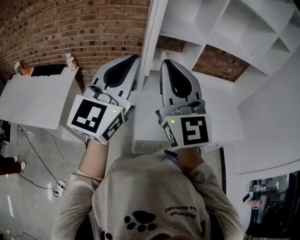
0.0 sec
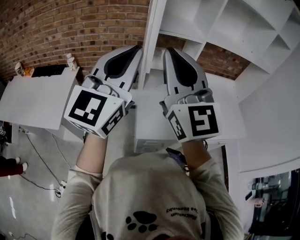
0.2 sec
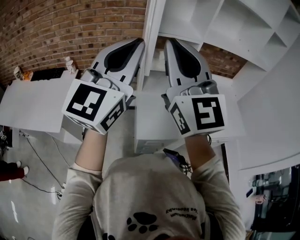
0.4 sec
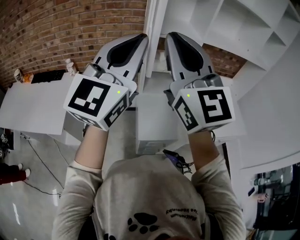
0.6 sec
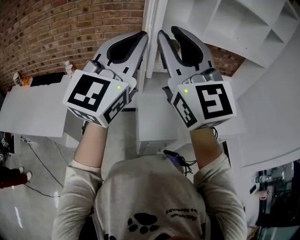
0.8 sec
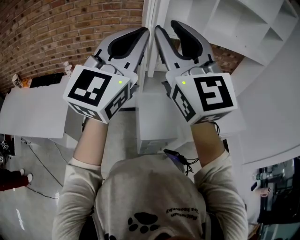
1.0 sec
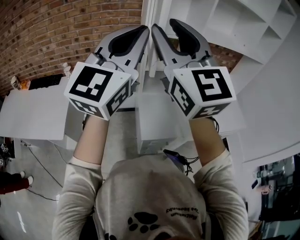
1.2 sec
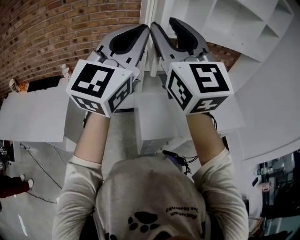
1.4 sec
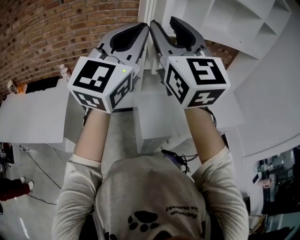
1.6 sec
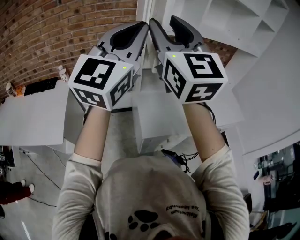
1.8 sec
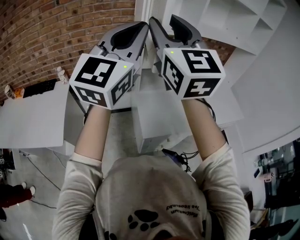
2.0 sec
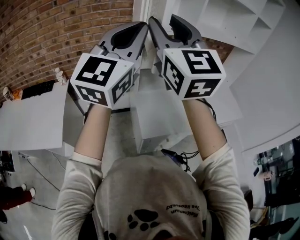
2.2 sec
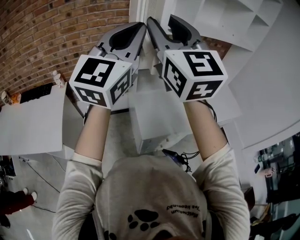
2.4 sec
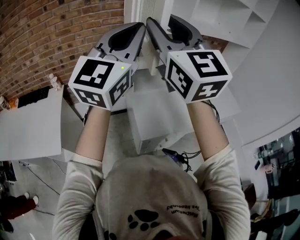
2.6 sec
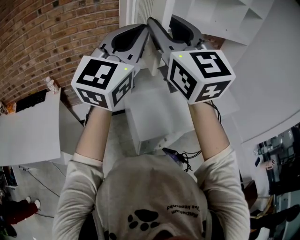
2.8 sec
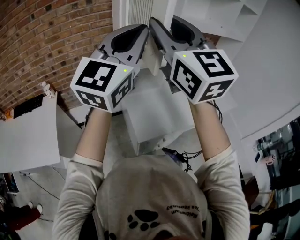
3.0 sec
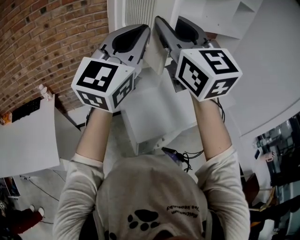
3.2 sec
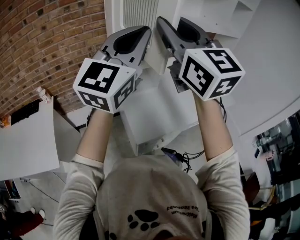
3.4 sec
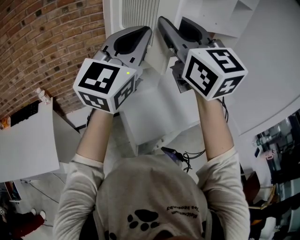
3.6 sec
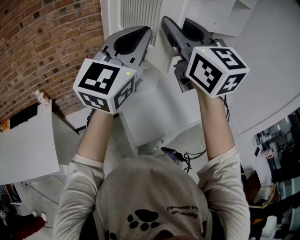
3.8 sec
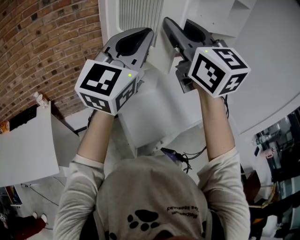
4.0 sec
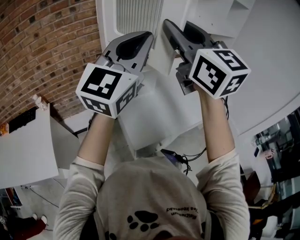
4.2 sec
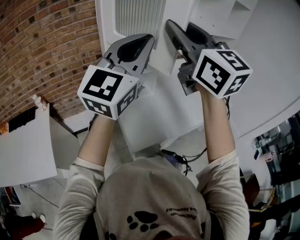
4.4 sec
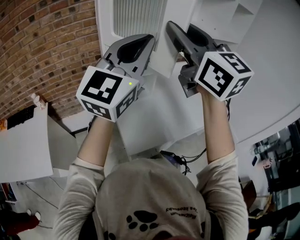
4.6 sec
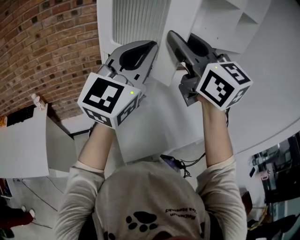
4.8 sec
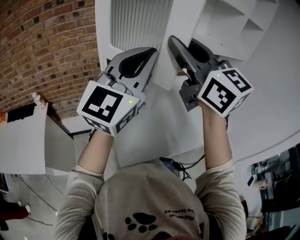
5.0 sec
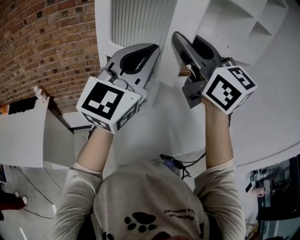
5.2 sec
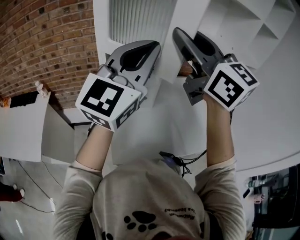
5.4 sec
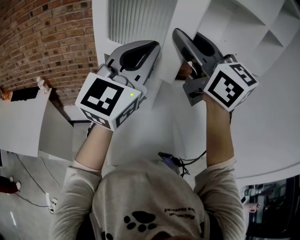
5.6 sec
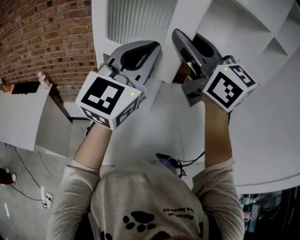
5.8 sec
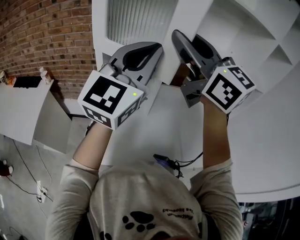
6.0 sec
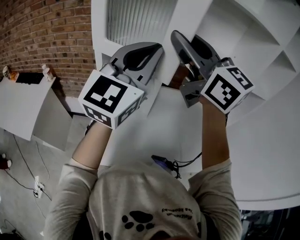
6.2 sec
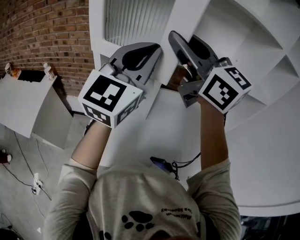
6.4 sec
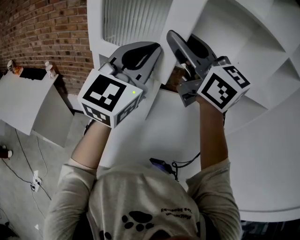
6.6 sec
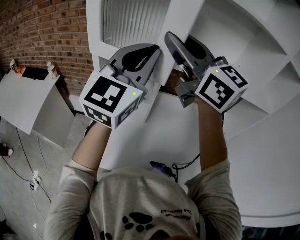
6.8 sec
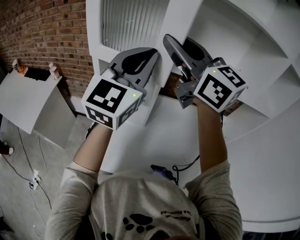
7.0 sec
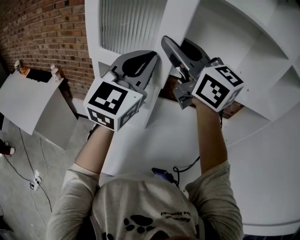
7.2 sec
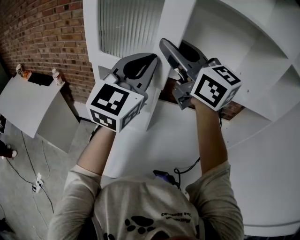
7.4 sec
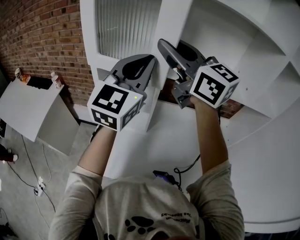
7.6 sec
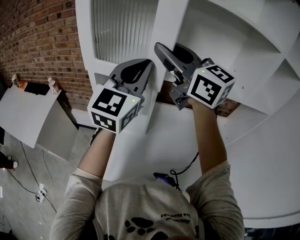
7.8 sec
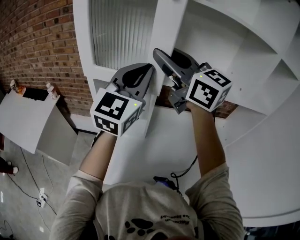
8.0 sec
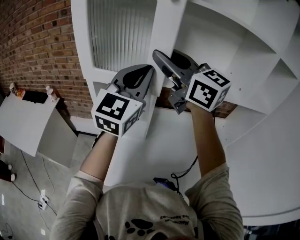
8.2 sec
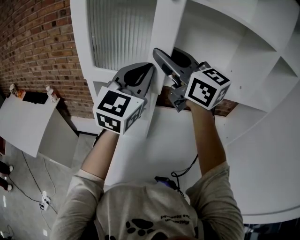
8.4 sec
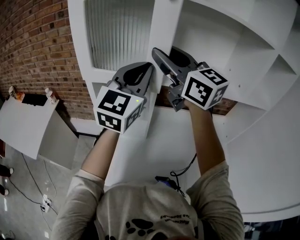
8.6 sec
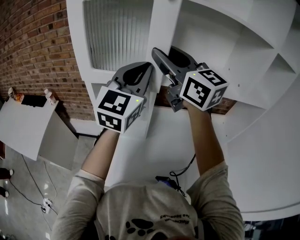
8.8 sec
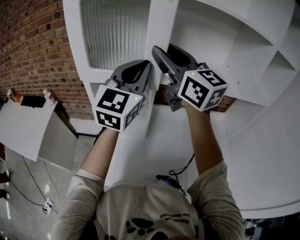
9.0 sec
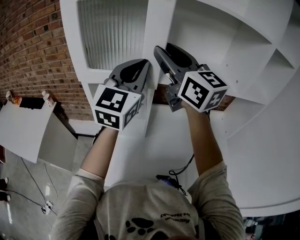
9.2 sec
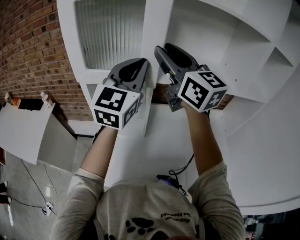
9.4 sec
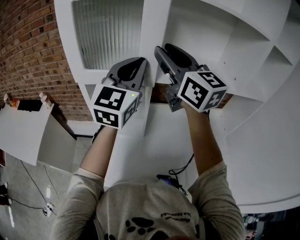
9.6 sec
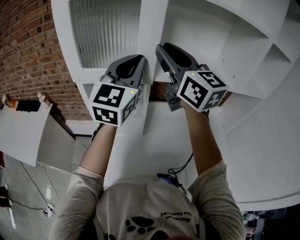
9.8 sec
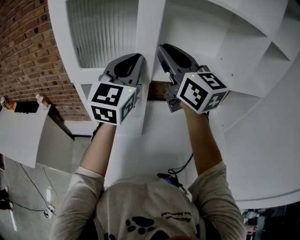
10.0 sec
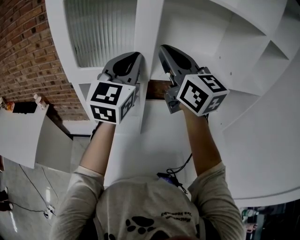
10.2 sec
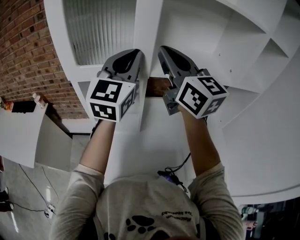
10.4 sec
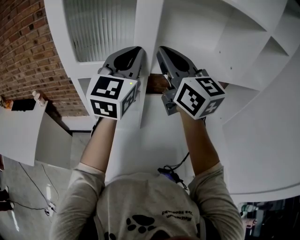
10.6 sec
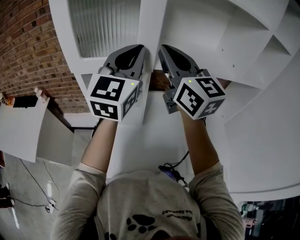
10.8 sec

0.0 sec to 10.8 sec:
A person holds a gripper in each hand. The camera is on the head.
0.0 sec to 1.6 sec: Both grippers travel together upward, approximately 10 cm. The right gripper opens up.
1.6 sec to 3.0 sec: The left gripper moves about 5 cm.
3.0 sec to 4.6 sec: Both grippers travel together to the right and forward, about 10 cm.
4.6 sec to 6.2 sec: The left gripper shifts by some 15 cm, and rotates approximately 20 degrees; the right gripper ends up about 15 cm from where it was, and swivels about 30 degrees.
6.2 sec to 7.8 sec: The grippers both shift forward by some 5 cm.
7.8 sec to 9.2 sec: The grippers stay close to where they were, moving slightly.
9.2 sec to 10.8 sec: The right gripper closes its fingers.

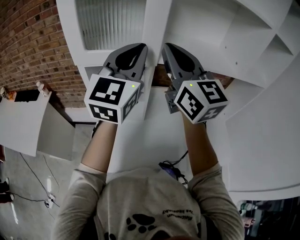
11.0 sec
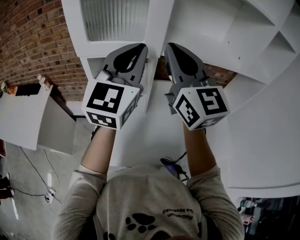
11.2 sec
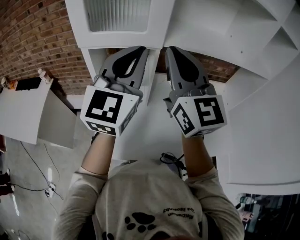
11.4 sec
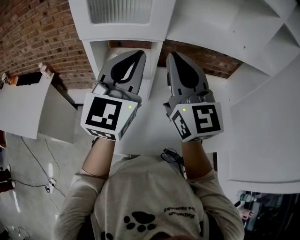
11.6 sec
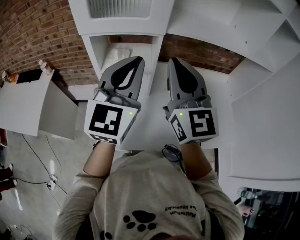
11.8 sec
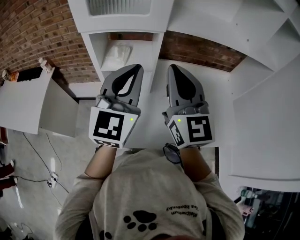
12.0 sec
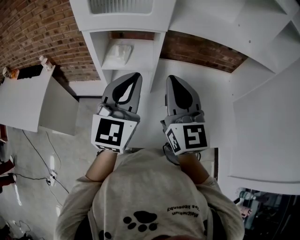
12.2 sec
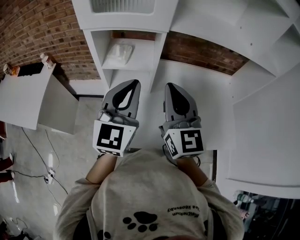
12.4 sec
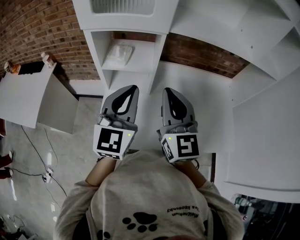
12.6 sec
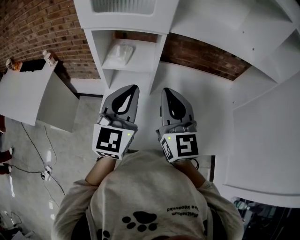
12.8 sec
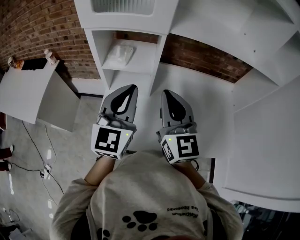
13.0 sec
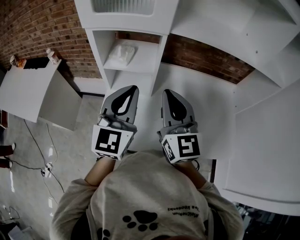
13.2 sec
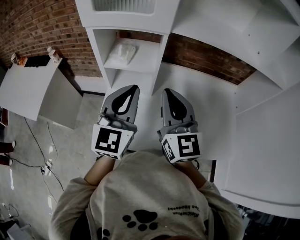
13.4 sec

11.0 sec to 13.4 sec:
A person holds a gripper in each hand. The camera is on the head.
11.0 sec to 12.2 sec: Both grippers move downward and backward, roughly 20 cm.
12.2 sec to 13.4 sec: There are only small adjustments of the grippers.

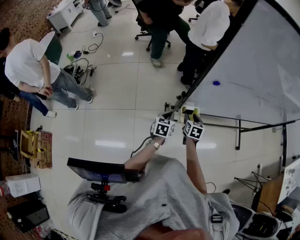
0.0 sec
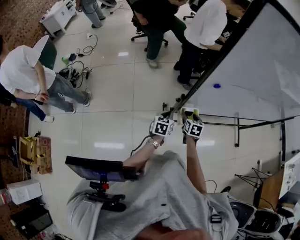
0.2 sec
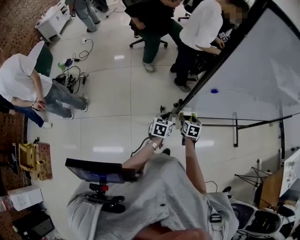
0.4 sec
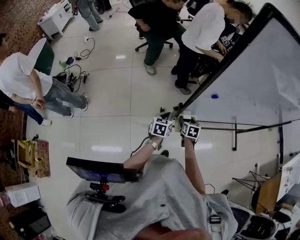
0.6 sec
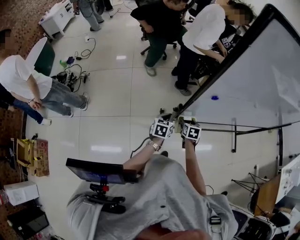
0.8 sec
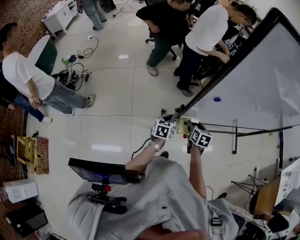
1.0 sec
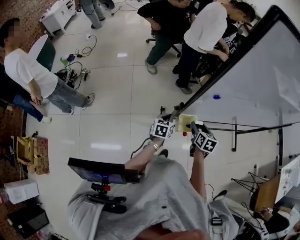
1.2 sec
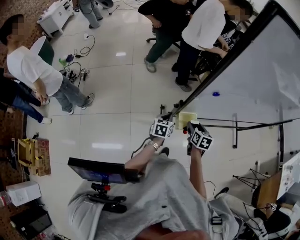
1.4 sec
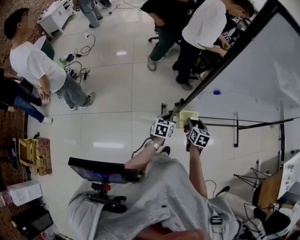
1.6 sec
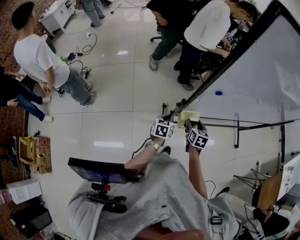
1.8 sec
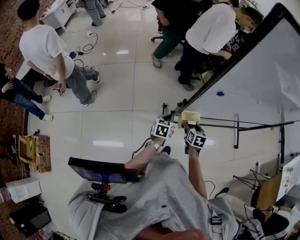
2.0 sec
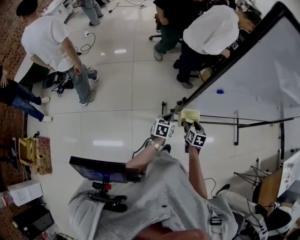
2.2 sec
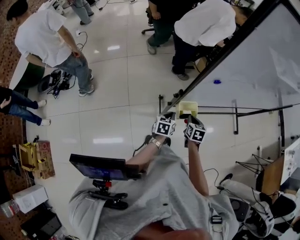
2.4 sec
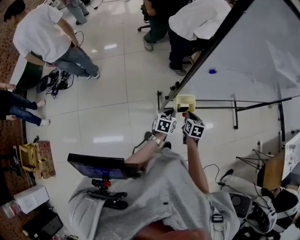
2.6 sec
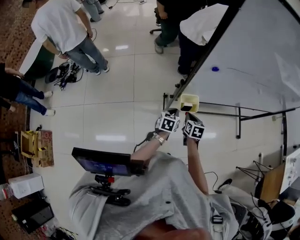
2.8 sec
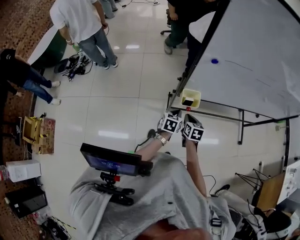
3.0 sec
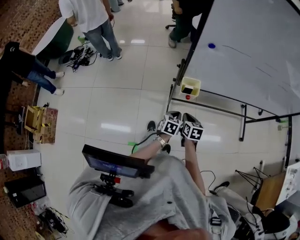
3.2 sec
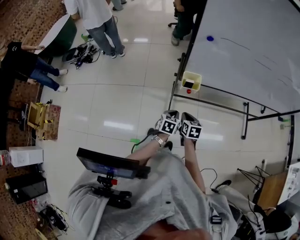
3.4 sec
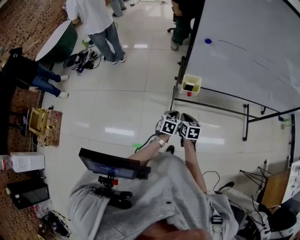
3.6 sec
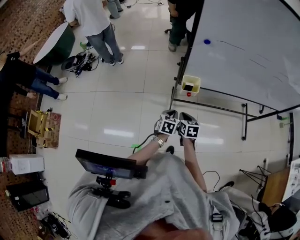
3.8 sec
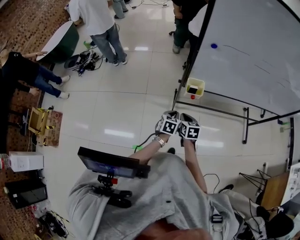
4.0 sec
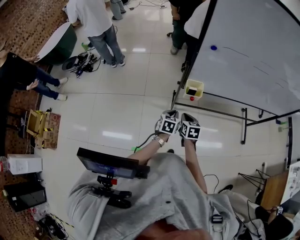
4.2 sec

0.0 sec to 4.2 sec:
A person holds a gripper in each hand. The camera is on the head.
0.0 sec to 1.4 sec: The left gripper changes place by some 5 cm.
1.4 sec to 2.8 sec: The left gripper heads backward and to the right, covering approximately 10 cm, while the right gripper moves backward, about 5 cm, and closes.
2.8 sec to 4.2 sec: Both grippers travel together backward, some 15 cm.

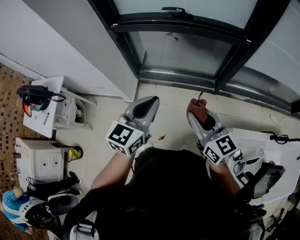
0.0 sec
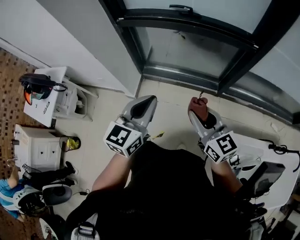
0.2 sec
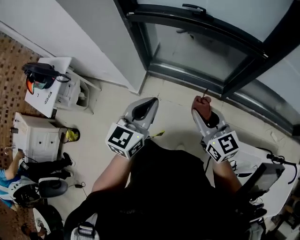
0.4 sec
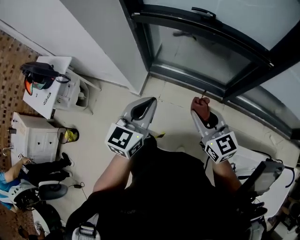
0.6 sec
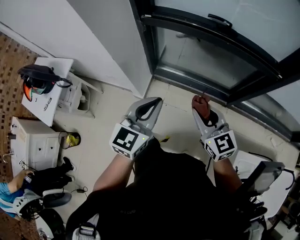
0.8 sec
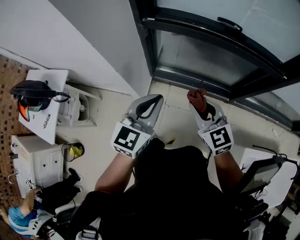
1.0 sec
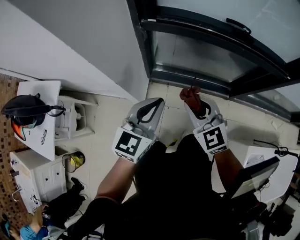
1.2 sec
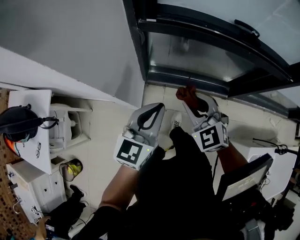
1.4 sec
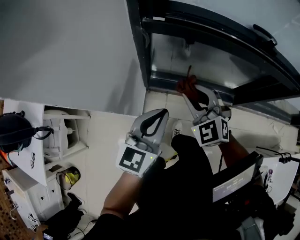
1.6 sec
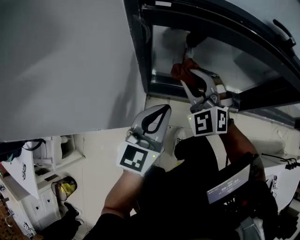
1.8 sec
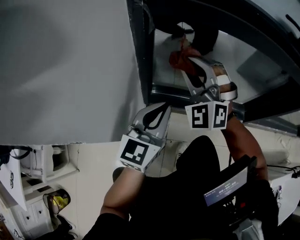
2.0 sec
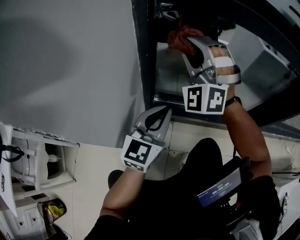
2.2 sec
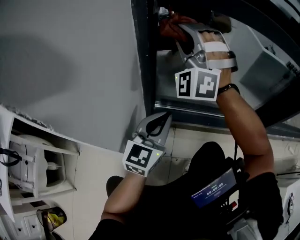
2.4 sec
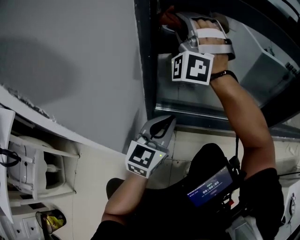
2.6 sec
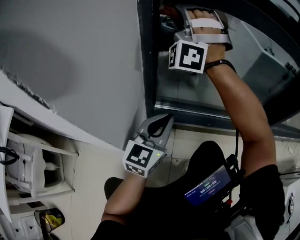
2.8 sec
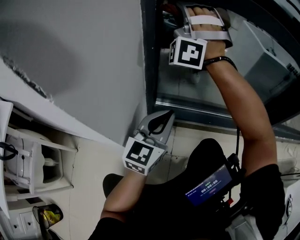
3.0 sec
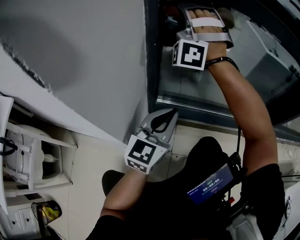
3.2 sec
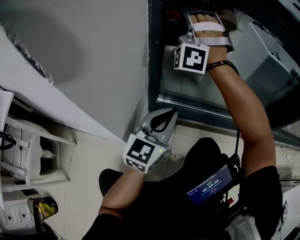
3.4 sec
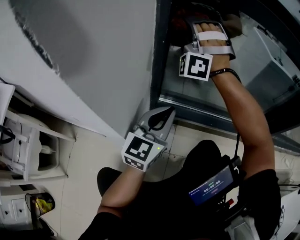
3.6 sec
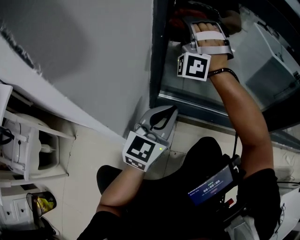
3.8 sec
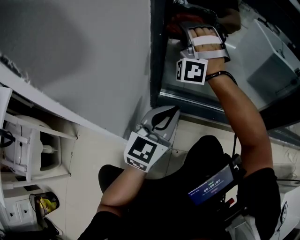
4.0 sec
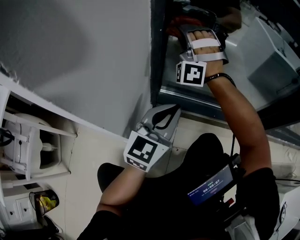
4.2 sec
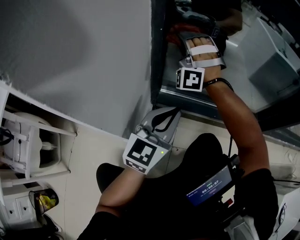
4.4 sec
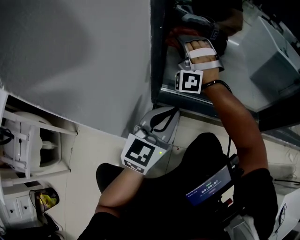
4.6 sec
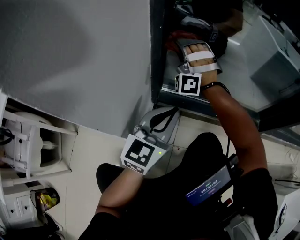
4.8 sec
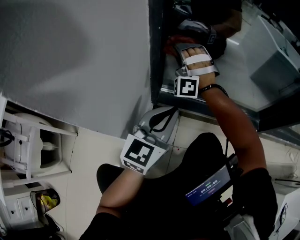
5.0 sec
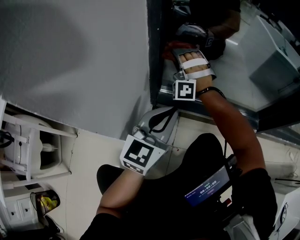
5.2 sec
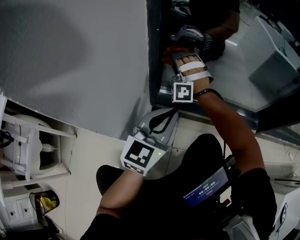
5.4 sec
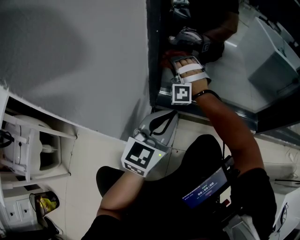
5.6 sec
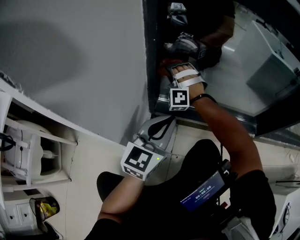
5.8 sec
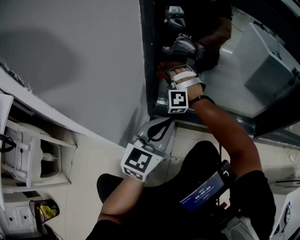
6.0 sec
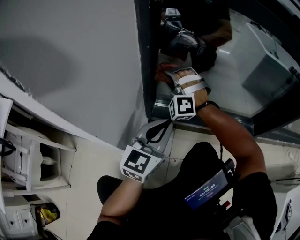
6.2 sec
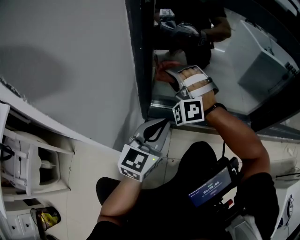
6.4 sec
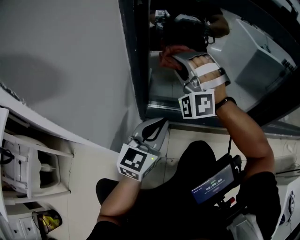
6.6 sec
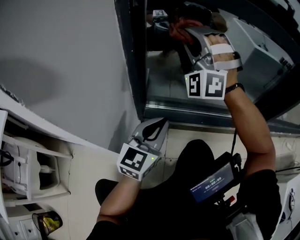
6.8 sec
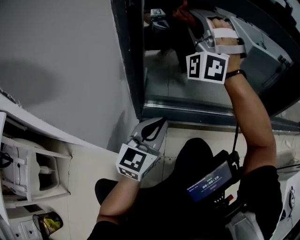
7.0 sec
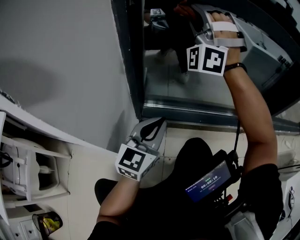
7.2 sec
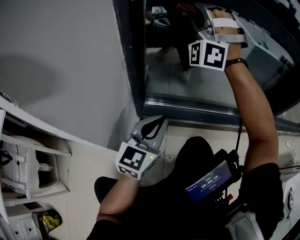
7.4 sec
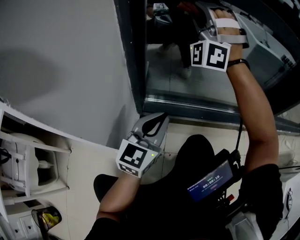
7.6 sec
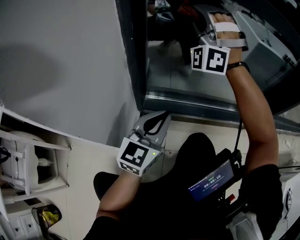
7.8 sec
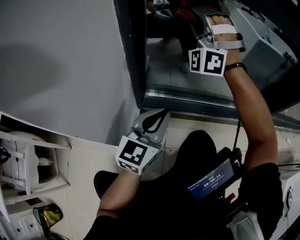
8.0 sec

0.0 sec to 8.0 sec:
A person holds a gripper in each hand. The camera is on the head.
0.0 sec to 1.6 sec: The grippers both shift forward, to the left and downward by roughly 50 cm. The right gripper rolls counterclockwise, seen from behind, by approximately 50 degrees.
1.6 sec to 3.2 sec: The right gripper moves forward and to the left, approximately 30 cm, and tilts its fingers roughly 40 degrees upward. Meanwhile the left gripper goes roughly 30 cm downward.
3.2 sec to 4.8 sec: The right gripper goes approximately 20 cm downward.
4.8 sec to 6.4 sec: The right gripper heads backward, covering about 5 cm, and goes downward and returns, about 10 cm each way.
6.4 sec to 8.0 sec: The right gripper goes approximately 20 cm upward and forward, and swivels some 30 degrees.
